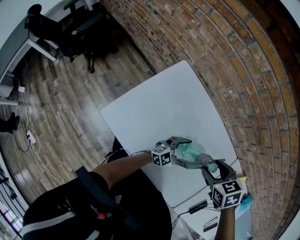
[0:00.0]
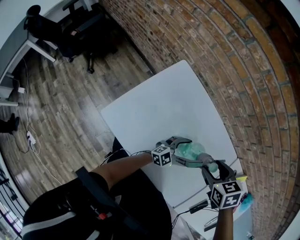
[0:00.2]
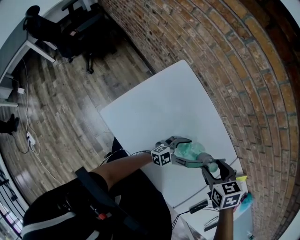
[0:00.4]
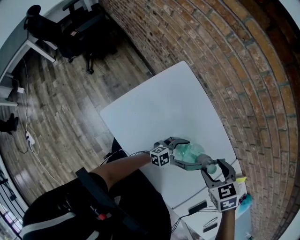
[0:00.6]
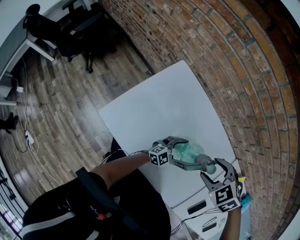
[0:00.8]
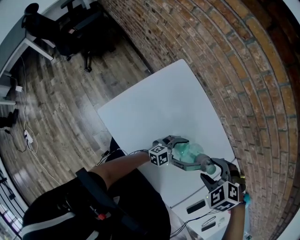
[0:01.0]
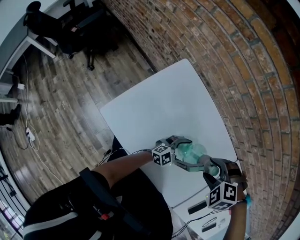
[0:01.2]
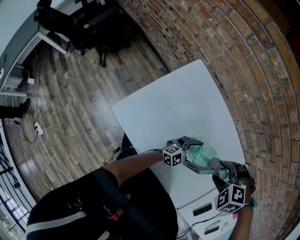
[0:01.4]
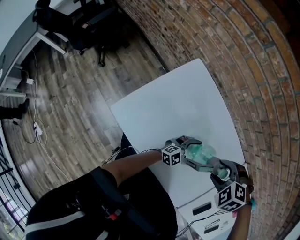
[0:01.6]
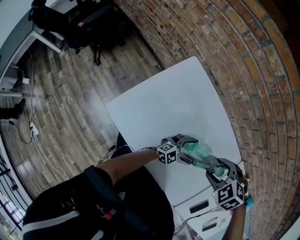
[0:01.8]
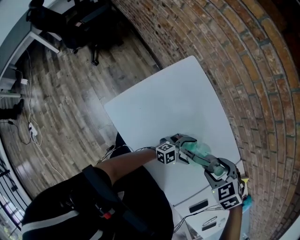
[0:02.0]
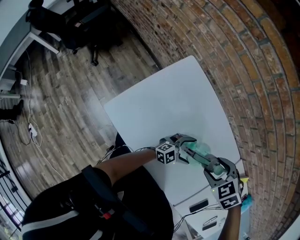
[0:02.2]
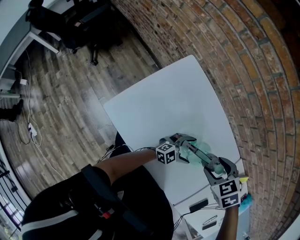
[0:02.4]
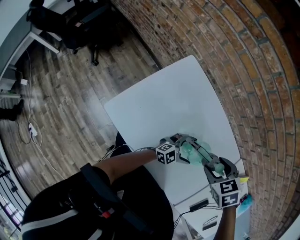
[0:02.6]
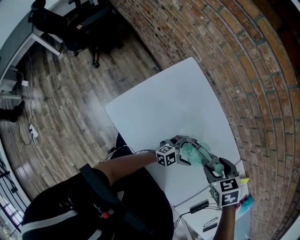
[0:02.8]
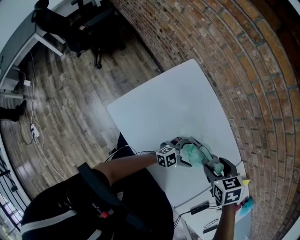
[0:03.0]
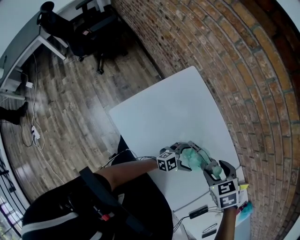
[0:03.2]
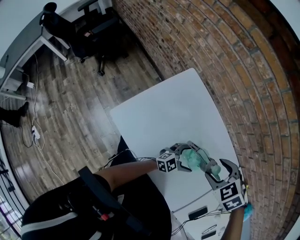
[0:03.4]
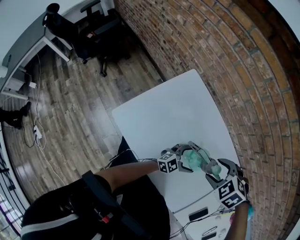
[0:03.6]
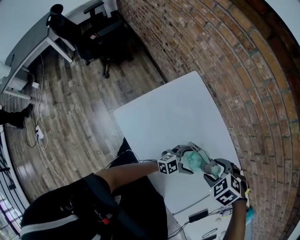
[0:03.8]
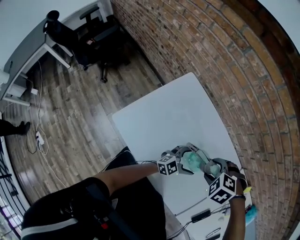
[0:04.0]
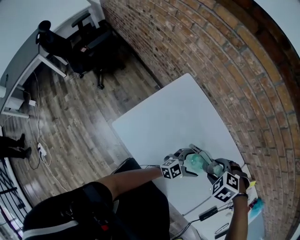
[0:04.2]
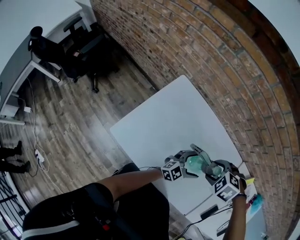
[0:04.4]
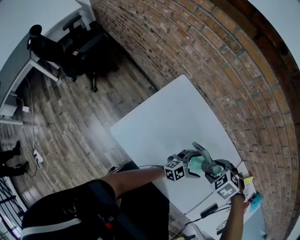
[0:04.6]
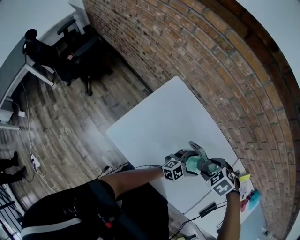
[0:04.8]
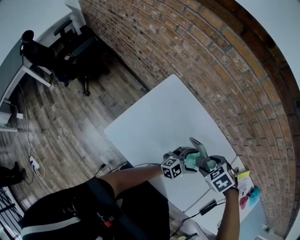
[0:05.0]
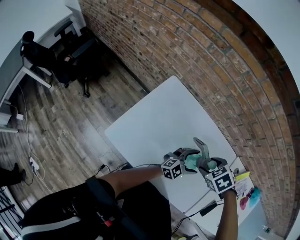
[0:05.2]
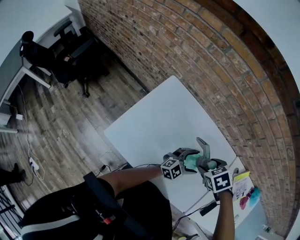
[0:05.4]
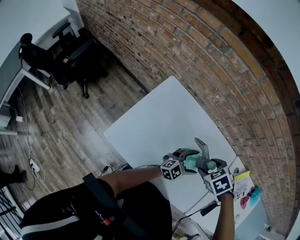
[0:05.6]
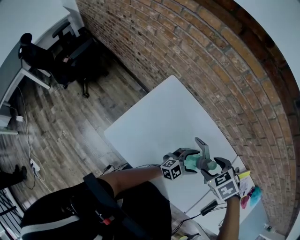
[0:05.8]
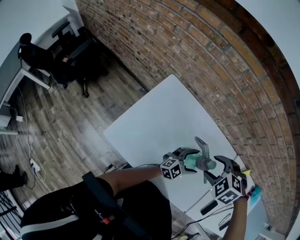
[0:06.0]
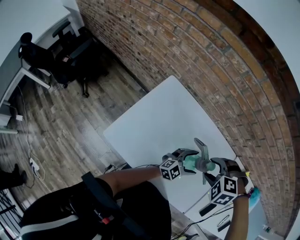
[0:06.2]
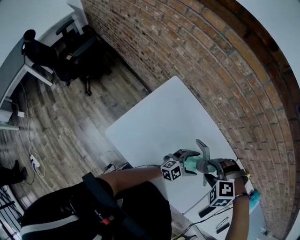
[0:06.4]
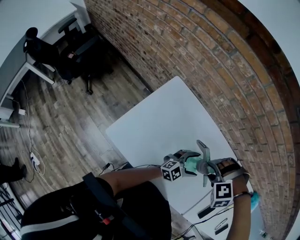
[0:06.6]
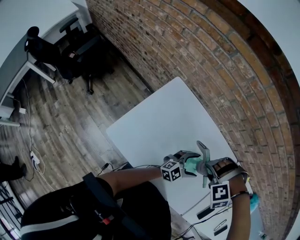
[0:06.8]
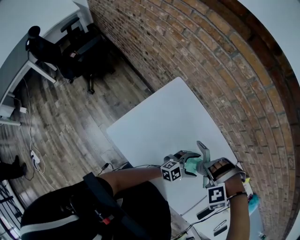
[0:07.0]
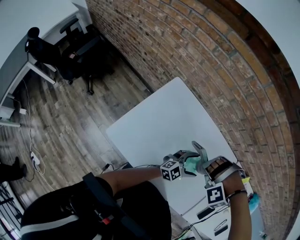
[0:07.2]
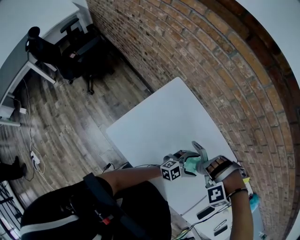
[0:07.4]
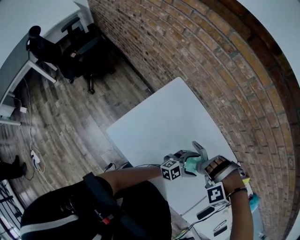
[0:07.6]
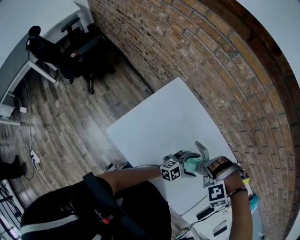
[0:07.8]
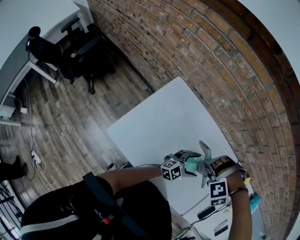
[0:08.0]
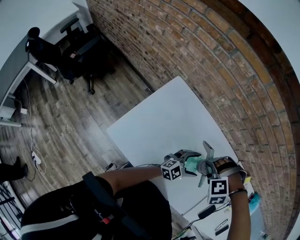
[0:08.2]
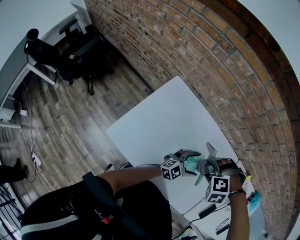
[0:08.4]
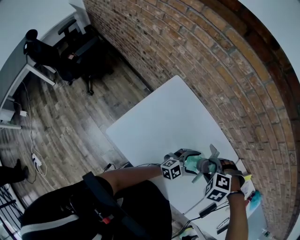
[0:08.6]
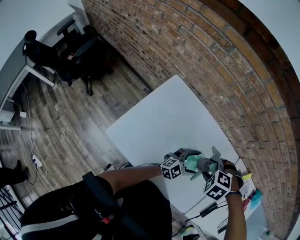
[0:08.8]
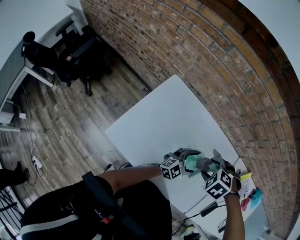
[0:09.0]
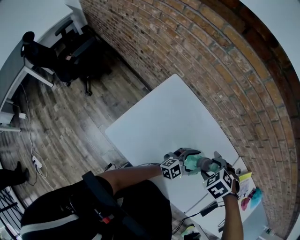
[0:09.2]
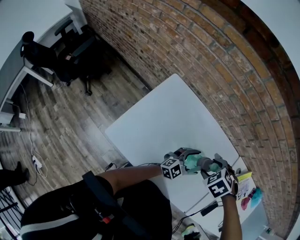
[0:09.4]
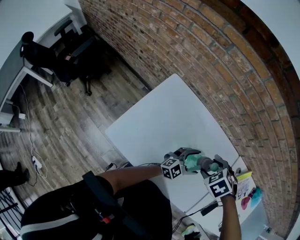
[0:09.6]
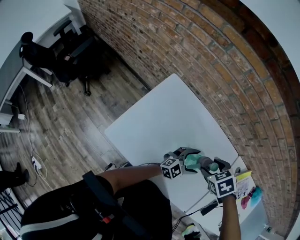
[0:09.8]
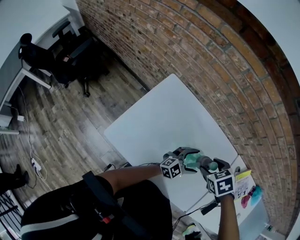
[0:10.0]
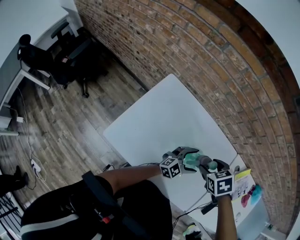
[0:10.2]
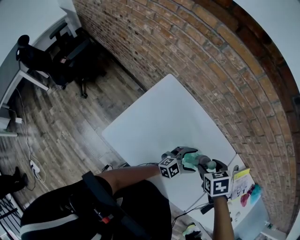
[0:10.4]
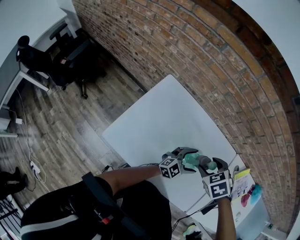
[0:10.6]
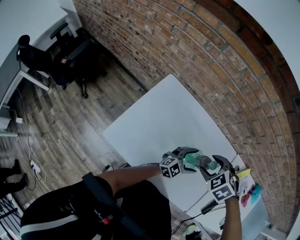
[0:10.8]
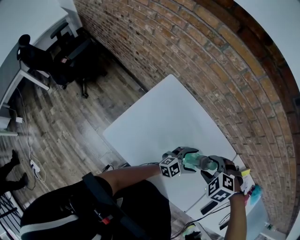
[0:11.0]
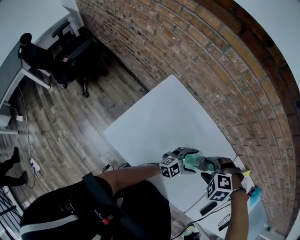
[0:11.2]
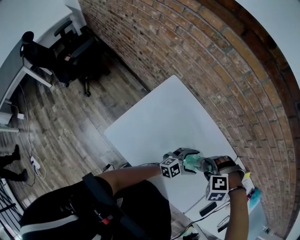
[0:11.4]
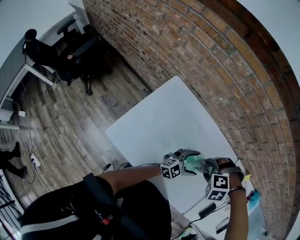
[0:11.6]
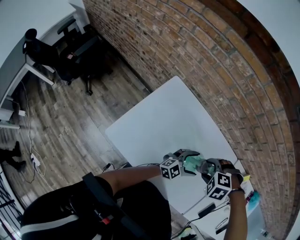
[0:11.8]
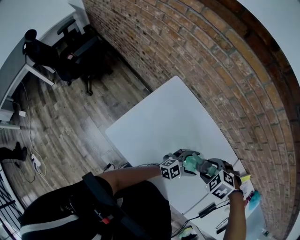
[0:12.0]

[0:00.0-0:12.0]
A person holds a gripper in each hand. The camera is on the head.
0:00.0 to 0:01.6: The right gripper twists approximately 50 degrees counterclockwise, seen from behind.
0:01.6 to 0:03.0: The right gripper rolls clockwise, seen from behind, by roughly 50 degrees.
0:03.0 to 0:04.4: The right gripper turns by some 40 degrees. Meanwhile the left gripper is displaced upward by roughly 5 cm.
0:04.4 to 0:06.0: The right gripper goes approximately 5 cm upward.
0:06.0 to 0:07.6: The right gripper ends up approximately 5 cm from where it was, and twists roughly 80 degrees counterclockwise, seen from behind.
0:07.6 to 0:09.0: The right gripper rotates around the line of its fingers by approximately 80 degrees, clockwise from behind.
0:09.0 to 0:10.4: The right gripper rolls clockwise, seen from behind, by roughly 40 degrees.
0:10.4 to 0:12.0: The right gripper rolls counterclockwise, seen from behind, by approximately 50 degrees.

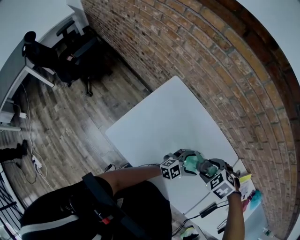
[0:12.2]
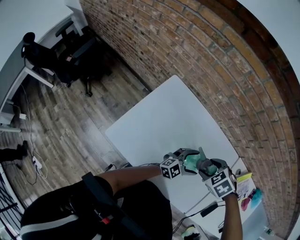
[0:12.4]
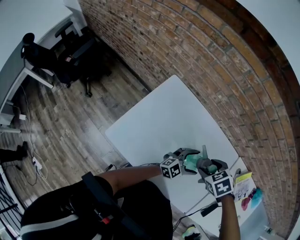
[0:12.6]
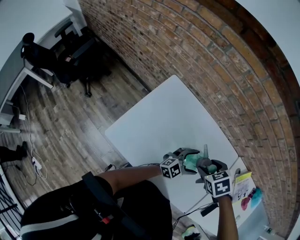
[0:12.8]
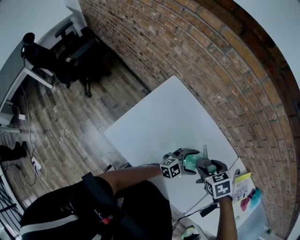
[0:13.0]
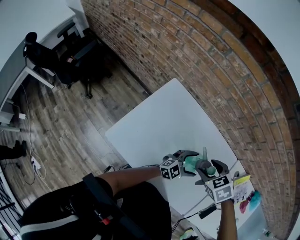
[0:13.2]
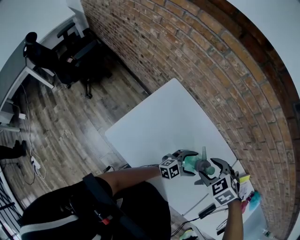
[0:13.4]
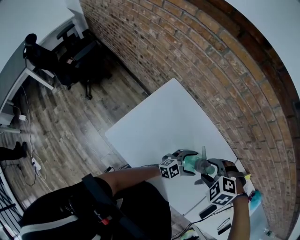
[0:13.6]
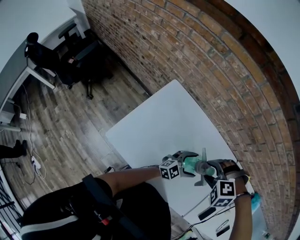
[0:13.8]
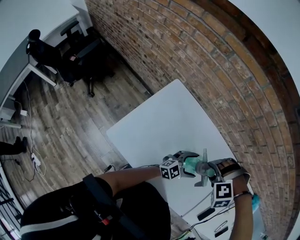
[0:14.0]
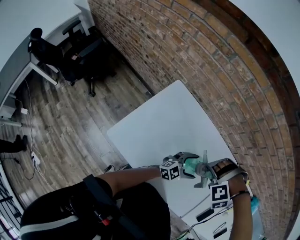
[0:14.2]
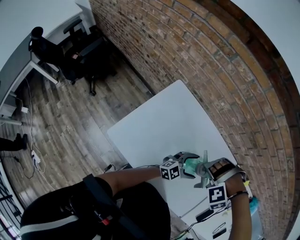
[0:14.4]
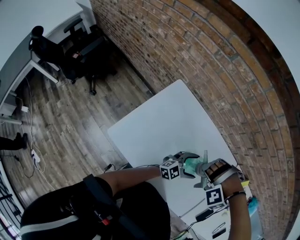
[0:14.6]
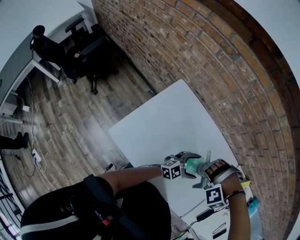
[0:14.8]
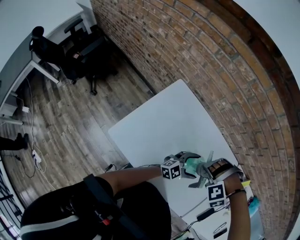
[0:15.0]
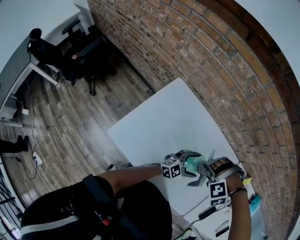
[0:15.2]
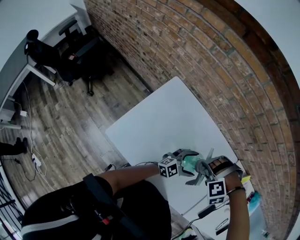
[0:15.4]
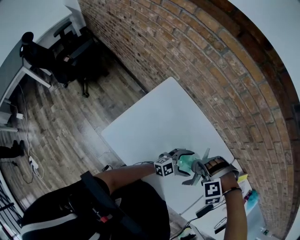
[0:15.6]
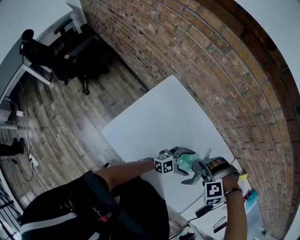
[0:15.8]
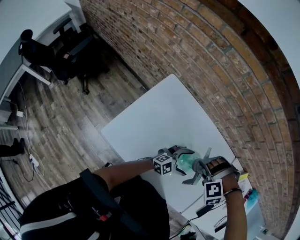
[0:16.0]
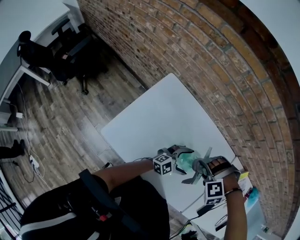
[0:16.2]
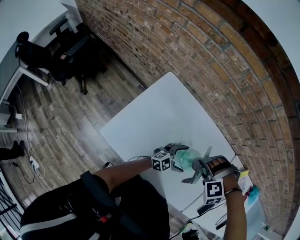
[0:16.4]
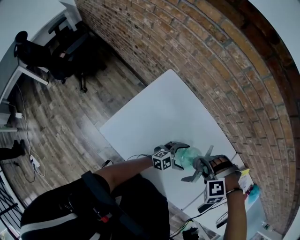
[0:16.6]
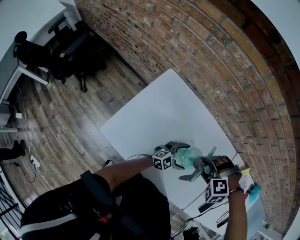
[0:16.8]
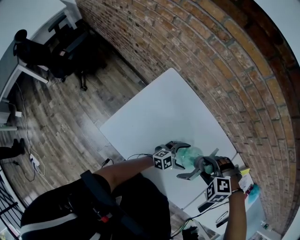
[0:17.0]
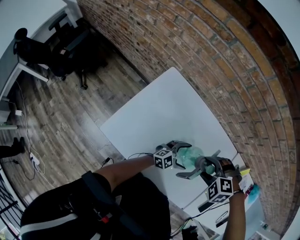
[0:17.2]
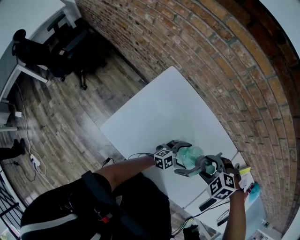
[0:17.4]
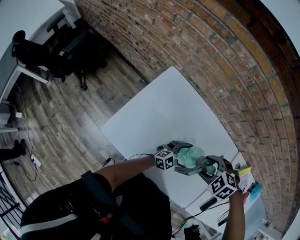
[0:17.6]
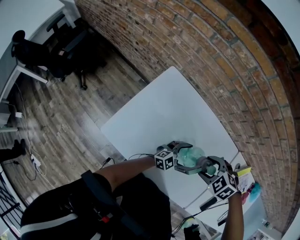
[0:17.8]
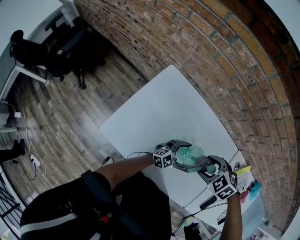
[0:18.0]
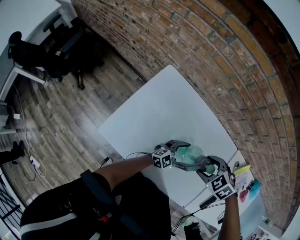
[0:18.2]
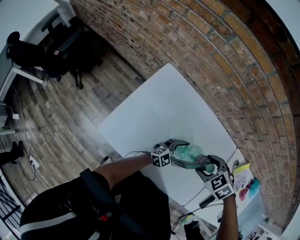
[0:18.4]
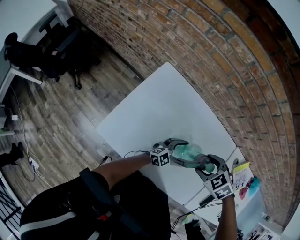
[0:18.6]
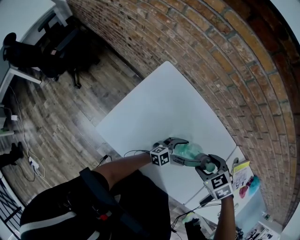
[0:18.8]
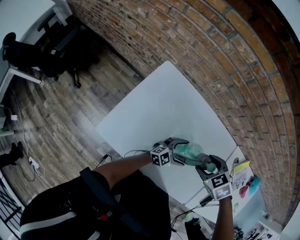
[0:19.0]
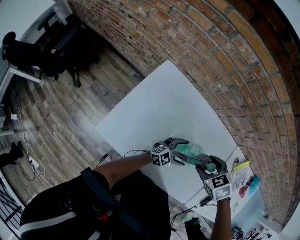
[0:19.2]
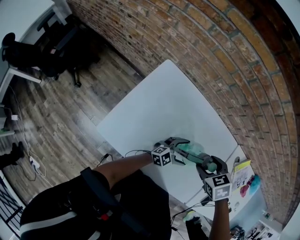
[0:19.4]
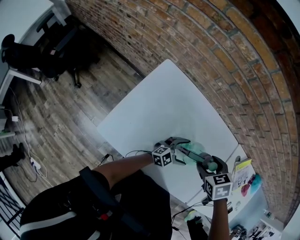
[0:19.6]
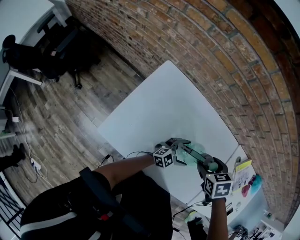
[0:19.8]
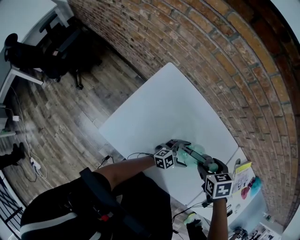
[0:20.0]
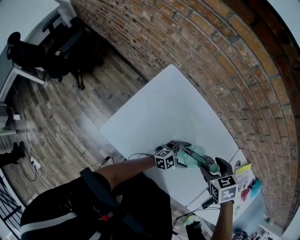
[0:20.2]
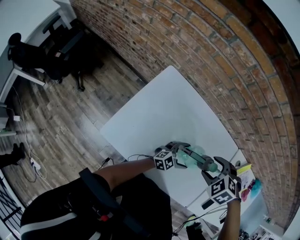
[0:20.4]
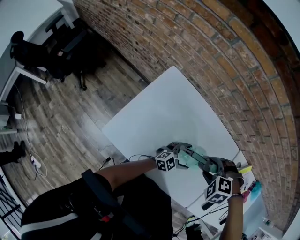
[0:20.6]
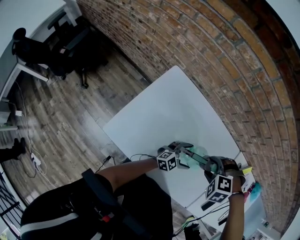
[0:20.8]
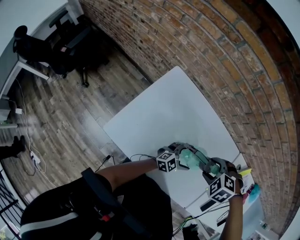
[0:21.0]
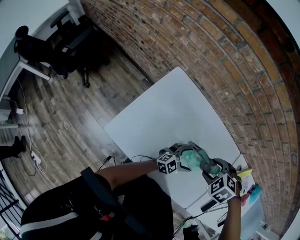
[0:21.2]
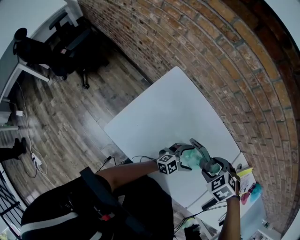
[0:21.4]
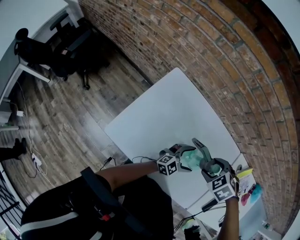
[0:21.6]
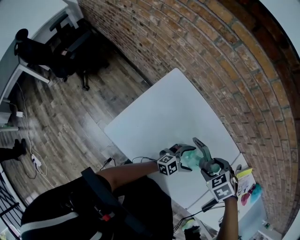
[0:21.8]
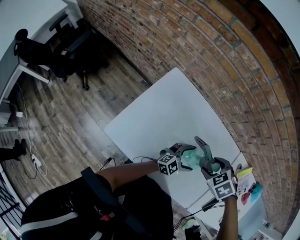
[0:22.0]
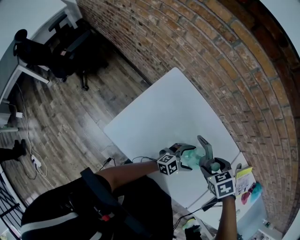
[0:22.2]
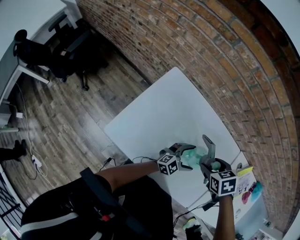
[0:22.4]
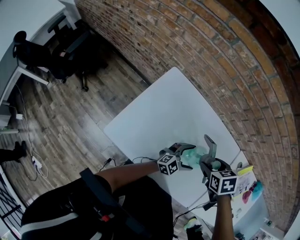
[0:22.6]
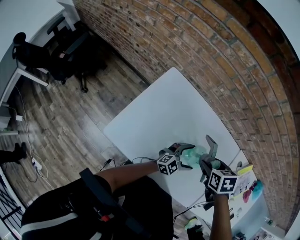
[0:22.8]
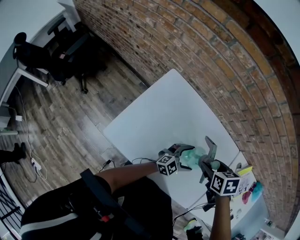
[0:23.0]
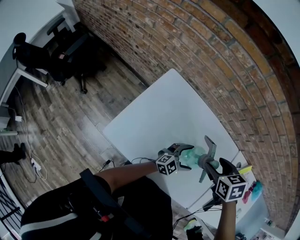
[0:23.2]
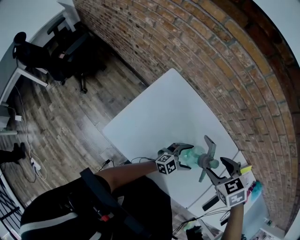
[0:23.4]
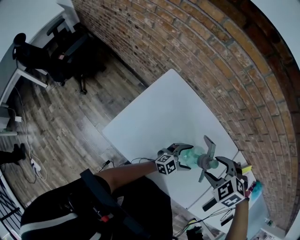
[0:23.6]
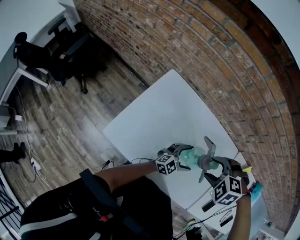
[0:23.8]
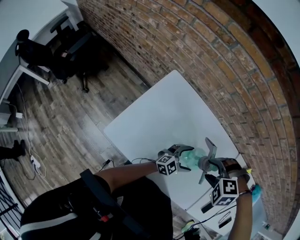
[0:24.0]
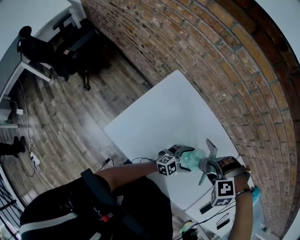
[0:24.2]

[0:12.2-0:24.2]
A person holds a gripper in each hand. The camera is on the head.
0:12.2 to 0:13.8: The right gripper changes its angle by some 40 degrees.
0:13.8 to 0:15.2: The right gripper rotates approximately 30 degrees.
0:15.2 to 0:16.6: The left gripper is displaced downward by about 5 cm.
0:16.6 to 0:18.2: The right gripper twists some 60 degrees clockwise, seen from behind.
0:18.2 to 0:19.8: The right gripper rotates about 40 degrees.
0:19.8 to 0:21.2: The right gripper rotates around the line of its fingers by about 50 degrees, counterclockwise from behind.
0:21.2 to 0:22.6: The right gripper rotates around the line of its fingers by roughly 50 degrees, clockwise from behind.
0:22.6 to 0:24.2: The right gripper rotates around the line of its fingers by some 100 degrees, counterclockwise from behind.
